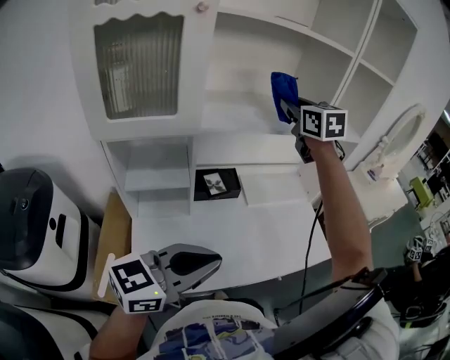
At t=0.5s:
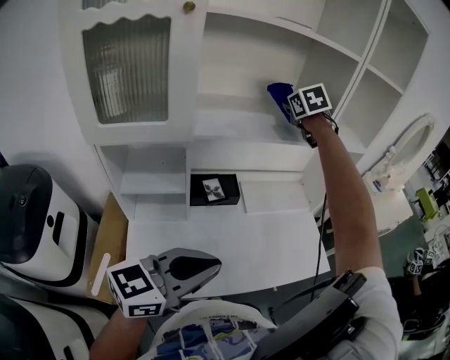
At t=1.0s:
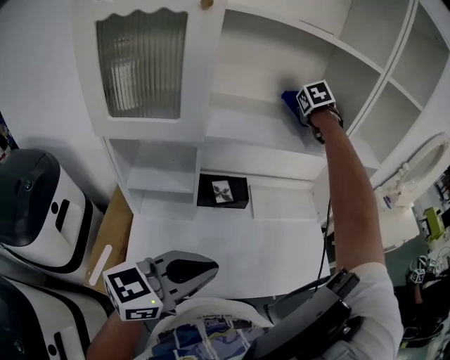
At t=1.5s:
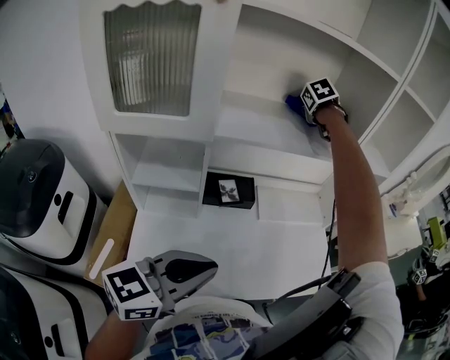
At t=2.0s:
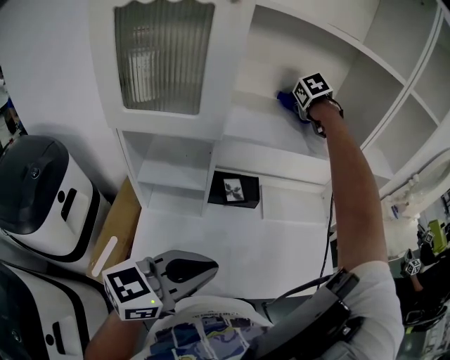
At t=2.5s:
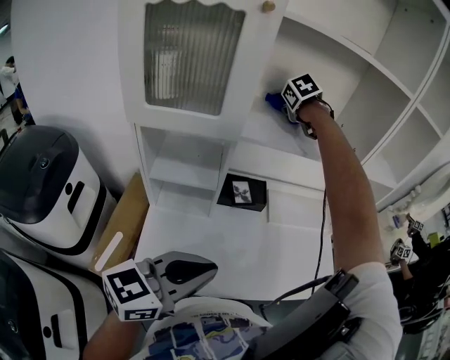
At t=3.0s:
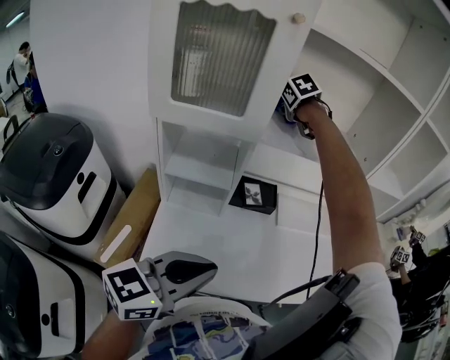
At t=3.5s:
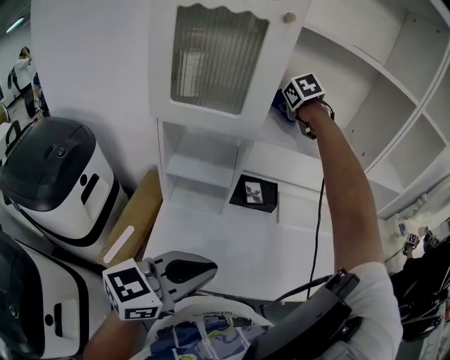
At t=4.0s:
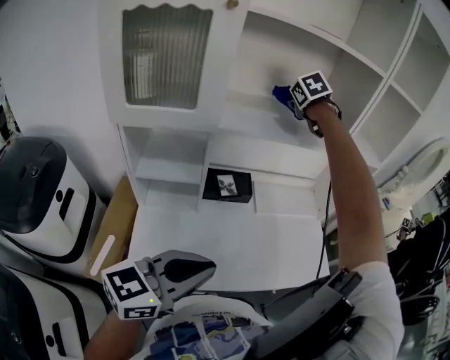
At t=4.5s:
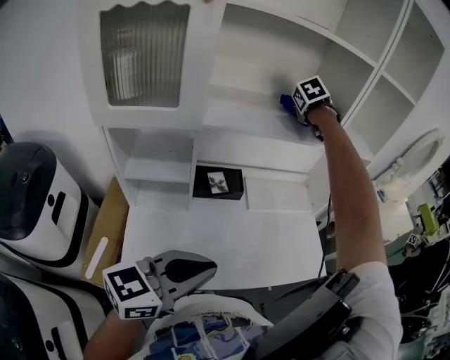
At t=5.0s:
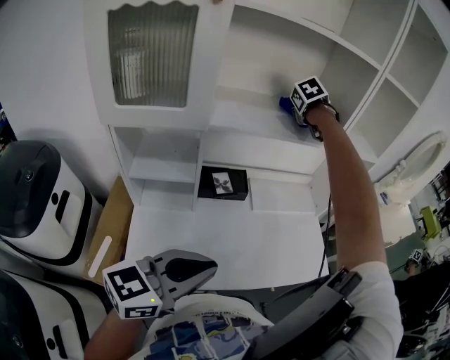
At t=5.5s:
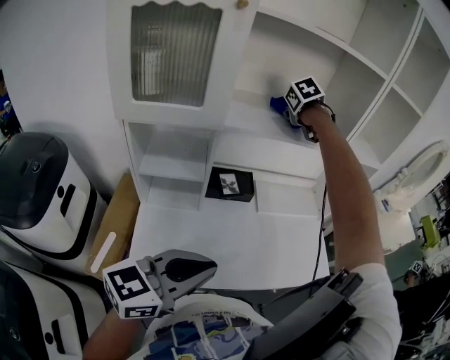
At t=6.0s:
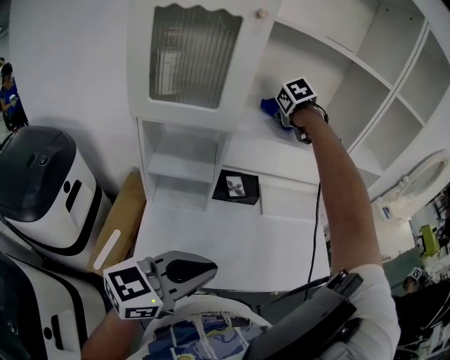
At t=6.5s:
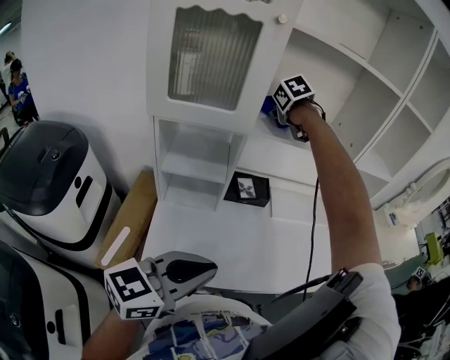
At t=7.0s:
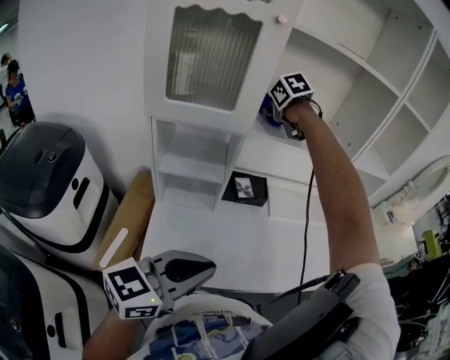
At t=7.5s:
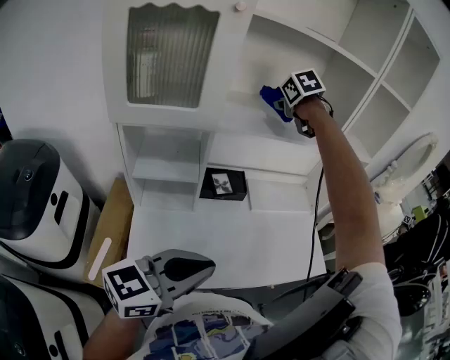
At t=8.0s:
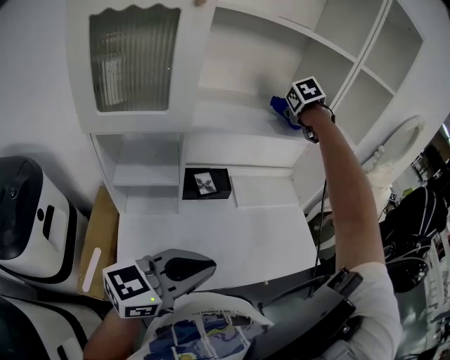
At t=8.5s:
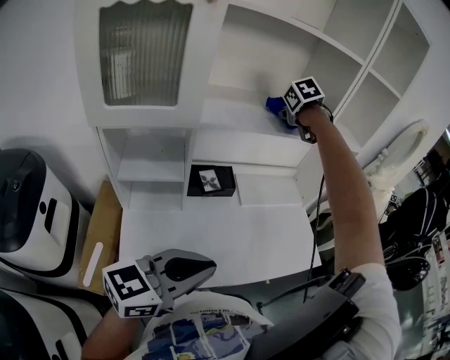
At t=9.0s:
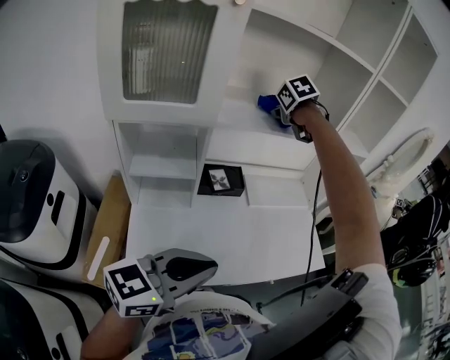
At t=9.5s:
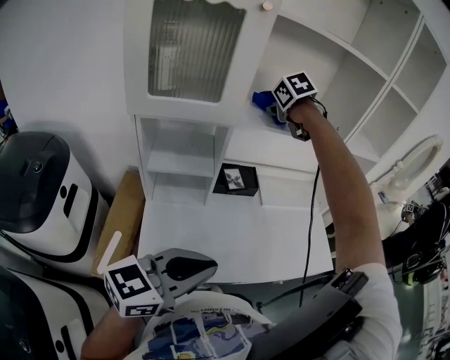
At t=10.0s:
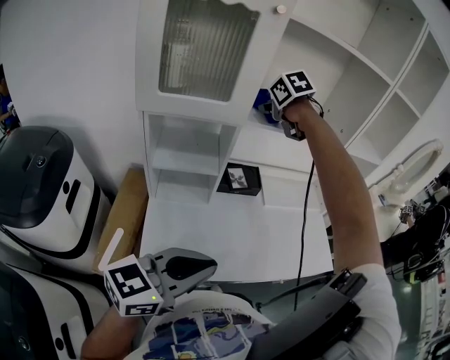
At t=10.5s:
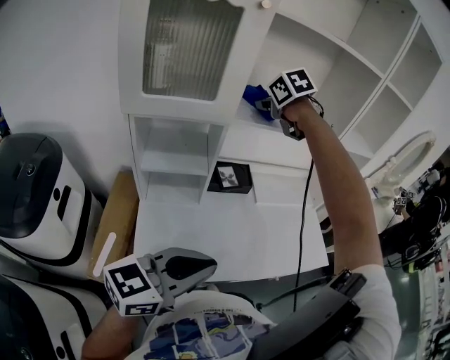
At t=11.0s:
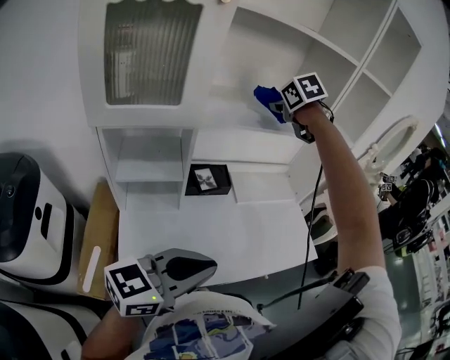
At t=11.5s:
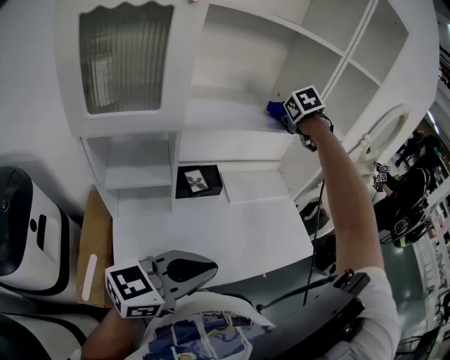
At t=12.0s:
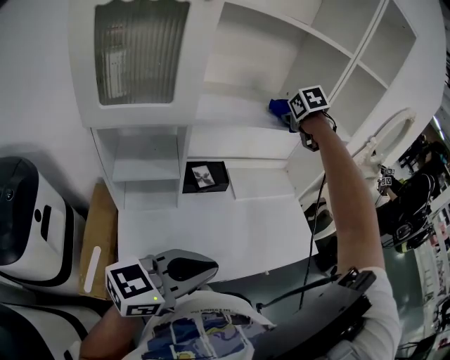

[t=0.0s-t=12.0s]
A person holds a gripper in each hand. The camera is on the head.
t=0.0s to t=2.0s: The right gripper travels forward, to the left and downward by approximately 20 cm, and tilts its fingers roughly 40 degrees downward.
t=2.0s to t=4.0s: The right gripper reaches about 15 cm to the left, then returns.
t=4.0s to t=6.0s: The right gripper is displaced backward and to the left by some 10 cm.
t=6.0s to t=8.0s: The right gripper goes about 15 cm to the right.
t=8.0s to t=10.0s: The left gripper heads backward and to the left, covering about 10 cm; the right gripper is displaced to the left and backward by approximately 25 cm, and turns by about 20 degrees.
t=10.0s to t=12.0s: The right gripper ends up roughly 25 cm from where it was, and changes its angle by some 20 degrees, while the left gripper ends up approximately 5 cm from where it was.

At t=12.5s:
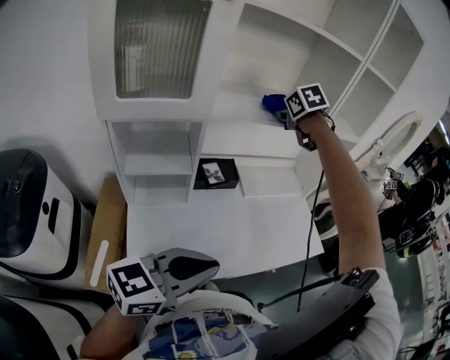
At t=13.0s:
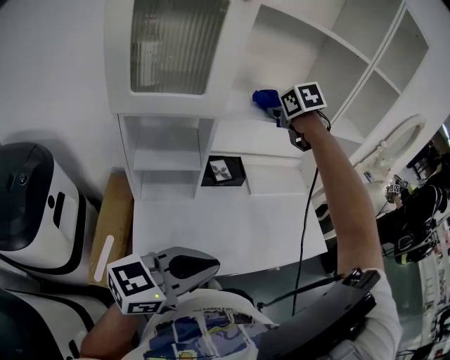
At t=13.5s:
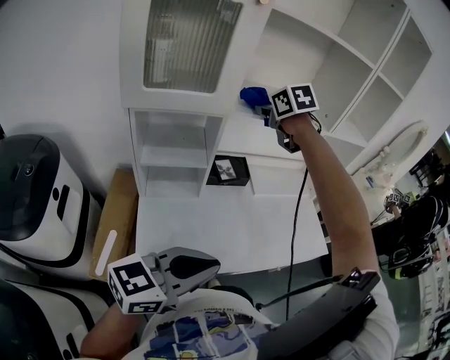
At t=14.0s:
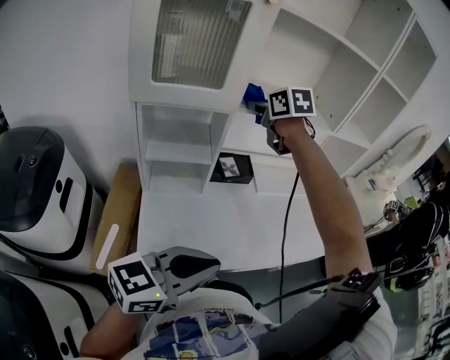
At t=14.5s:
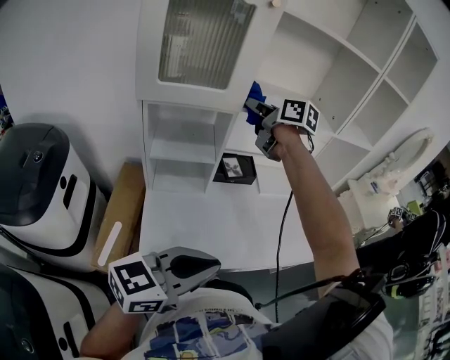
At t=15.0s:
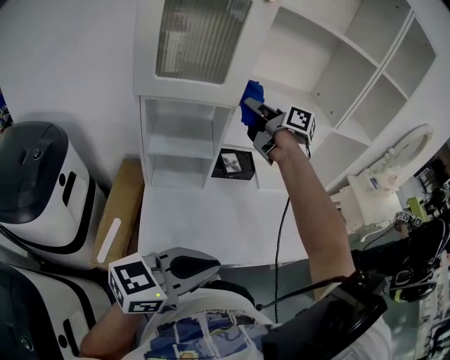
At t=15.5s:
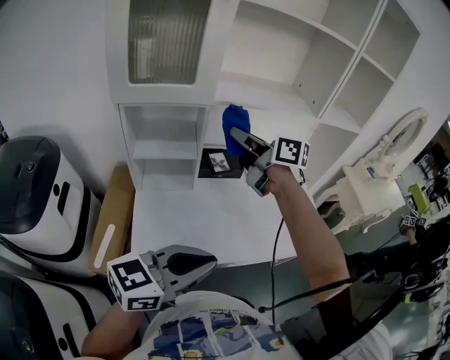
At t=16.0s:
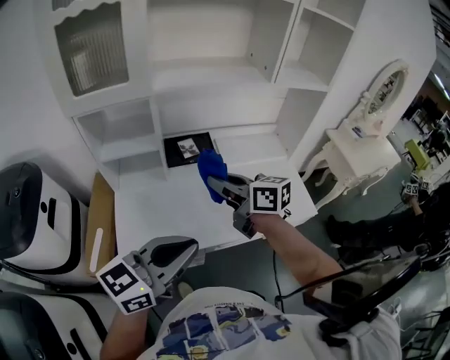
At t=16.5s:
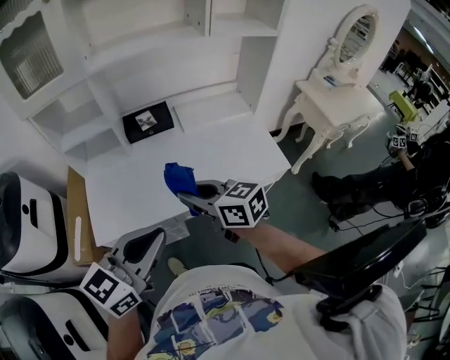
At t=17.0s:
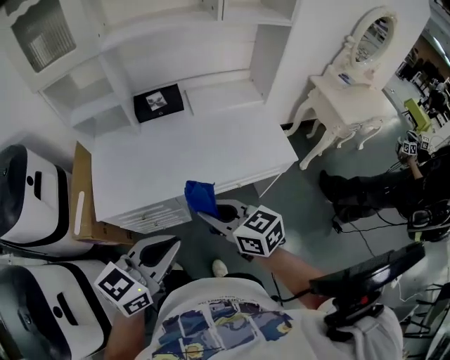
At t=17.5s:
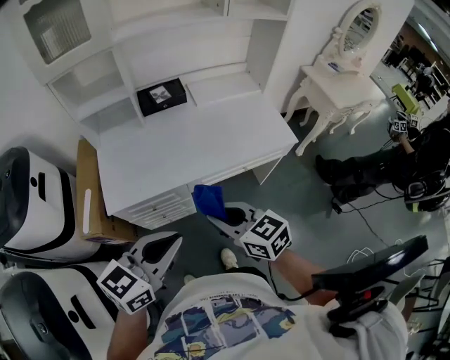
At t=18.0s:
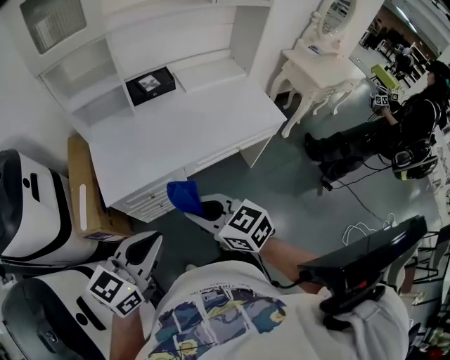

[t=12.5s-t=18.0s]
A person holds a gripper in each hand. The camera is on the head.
t=12.5s to t=14.5s: The left gripper is displaced backward by roughly 5 cm; the right gripper goes roughly 20 cm to the left and backward, and points its fingers about 30 degrees further upward.
t=14.5s to t=16.0s: The right gripper travels backward, to the right and downward by some 30 cm. Meanwhile the left gripper shifts about 10 cm to the right.
t=16.0s to t=18.0s: The left gripper heads backward and downward, covering approximately 25 cm, while the right gripper is displaced backward by approximately 35 cm, and changes its angle by roughly 20 degrees.

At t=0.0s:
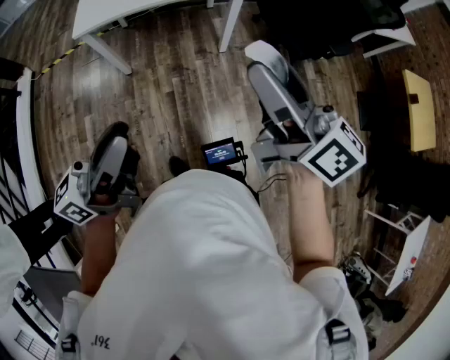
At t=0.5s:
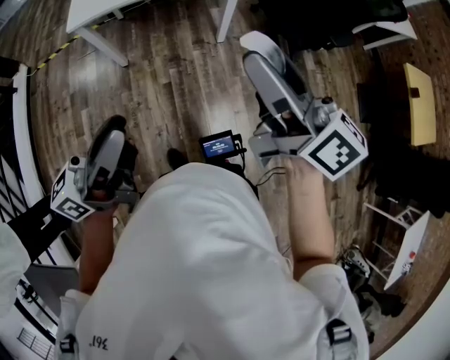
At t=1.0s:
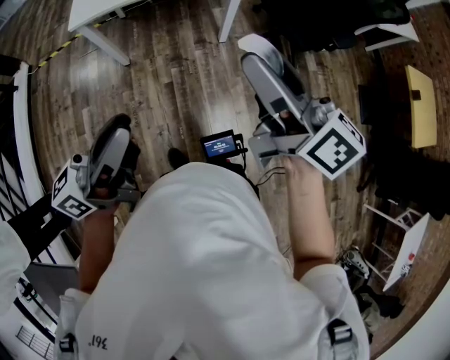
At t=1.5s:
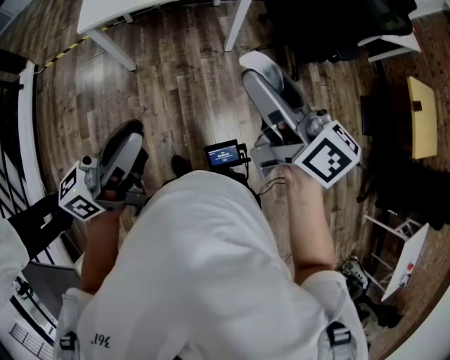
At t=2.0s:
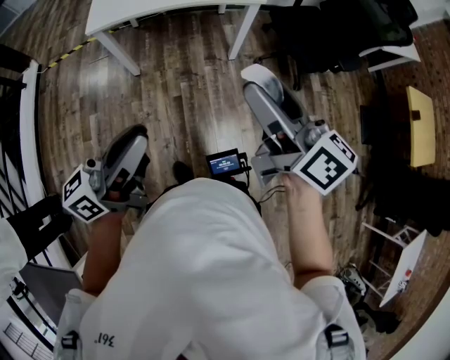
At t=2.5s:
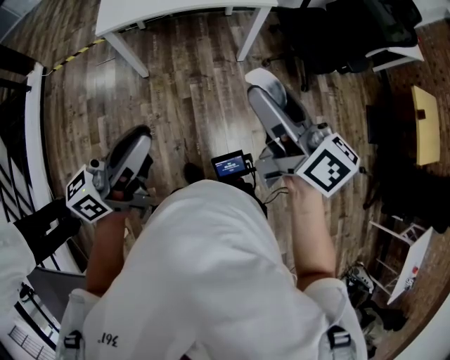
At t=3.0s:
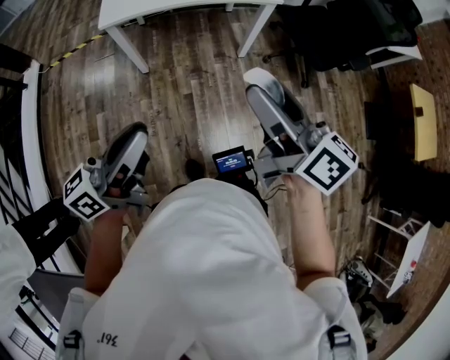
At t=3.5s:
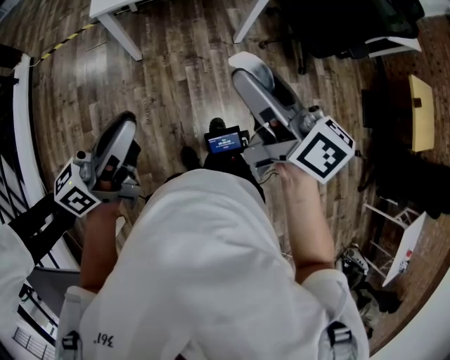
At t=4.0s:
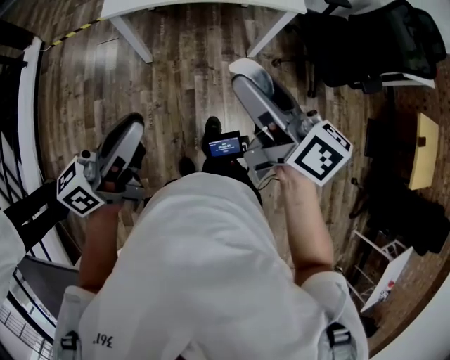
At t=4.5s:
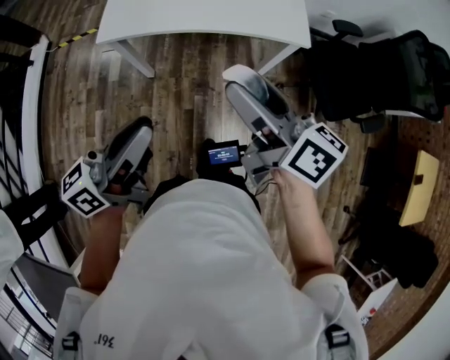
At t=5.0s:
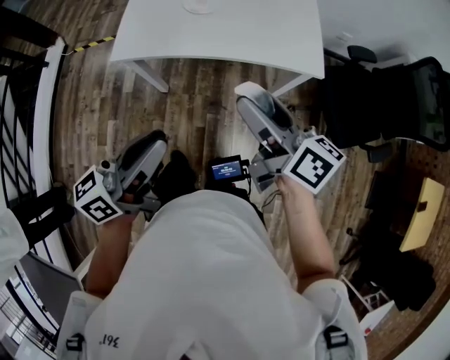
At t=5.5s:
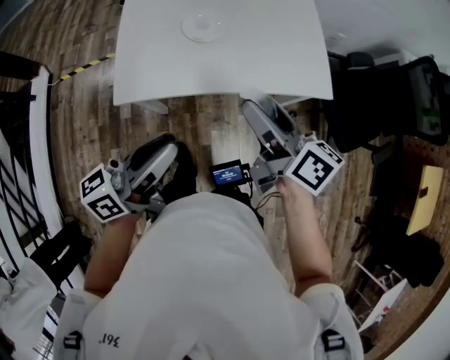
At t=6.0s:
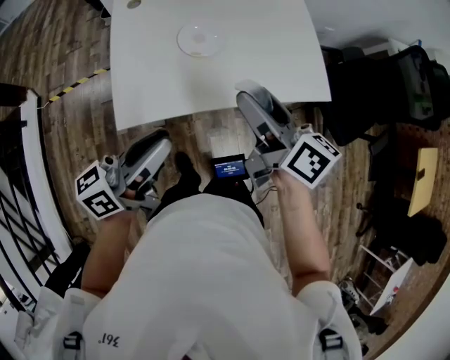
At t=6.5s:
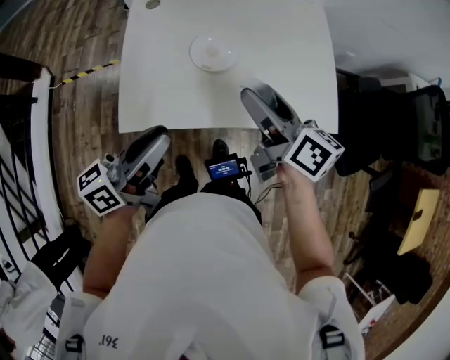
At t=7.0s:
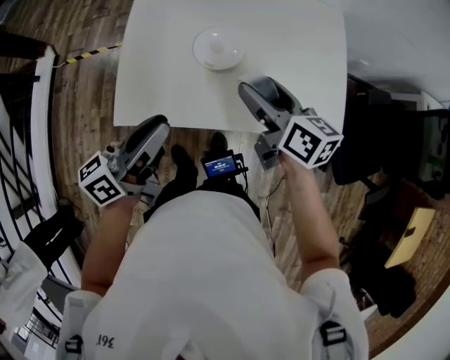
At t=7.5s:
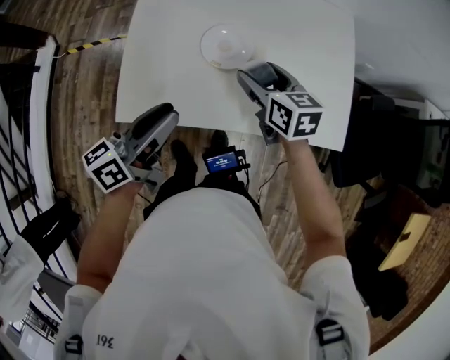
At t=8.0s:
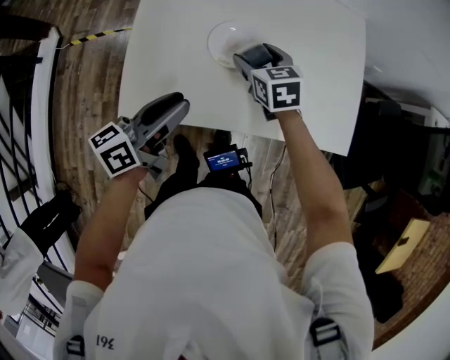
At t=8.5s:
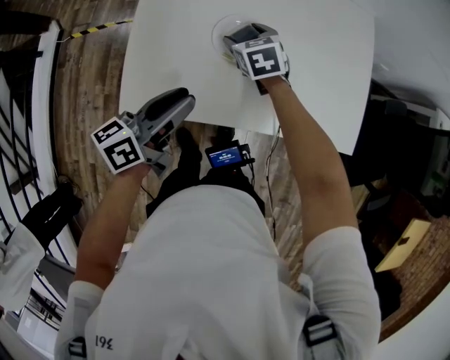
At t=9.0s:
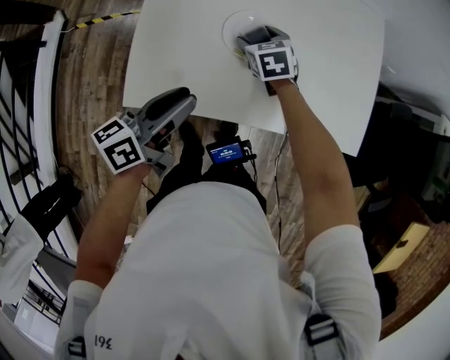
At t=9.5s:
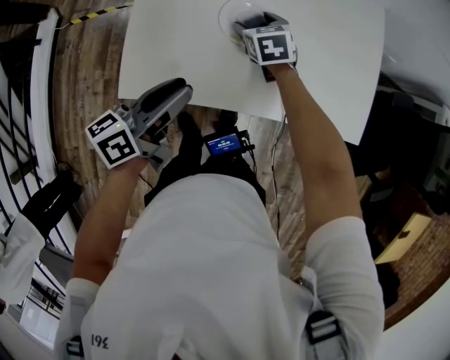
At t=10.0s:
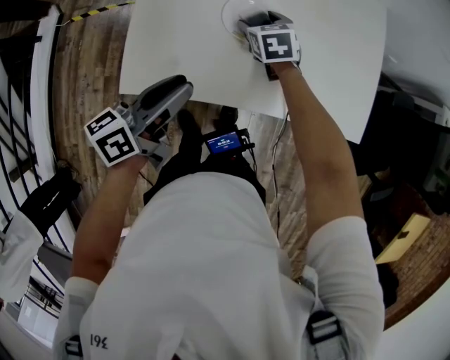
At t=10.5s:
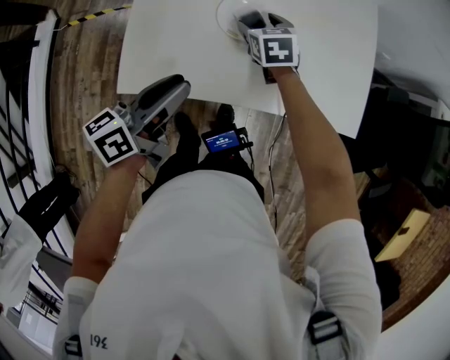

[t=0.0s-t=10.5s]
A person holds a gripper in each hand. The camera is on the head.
t=0.0s to t=2.0s: The grippers make only small movements.
t=2.0s to t=4.0s: The grippers both shift to the left and forward by some 15 cm.
t=4.0s to t=6.5s: The pair of grippers is taken forward, approximately 50 cm.
t=6.5s to t=8.5s: The left gripper heads downward and forward, covering roughly 15 cm; the right gripper goes about 30 cm downward, forward and to the left, and points its fingers some 40 degrees further downward.
t=8.5s to t=10.5s: The grippers stay close to where they were, moving slightly.
